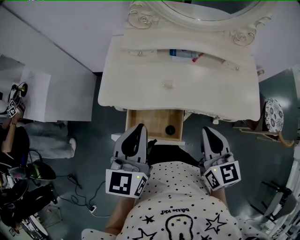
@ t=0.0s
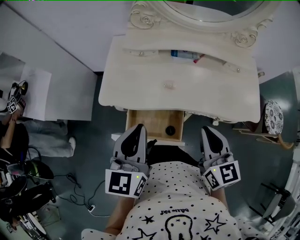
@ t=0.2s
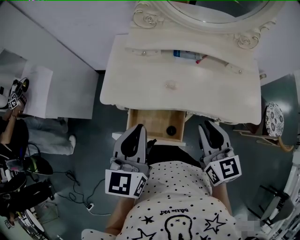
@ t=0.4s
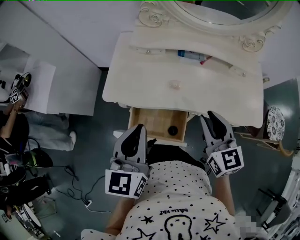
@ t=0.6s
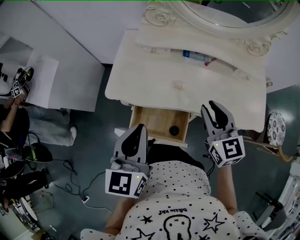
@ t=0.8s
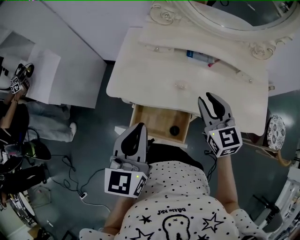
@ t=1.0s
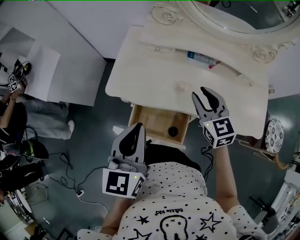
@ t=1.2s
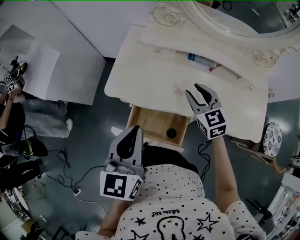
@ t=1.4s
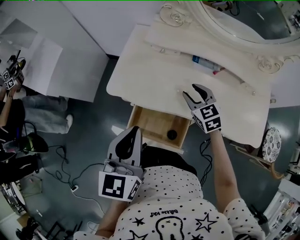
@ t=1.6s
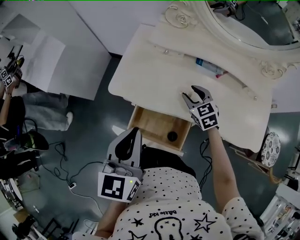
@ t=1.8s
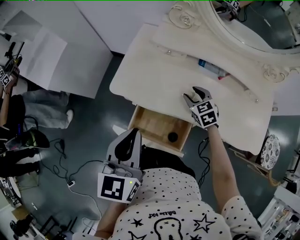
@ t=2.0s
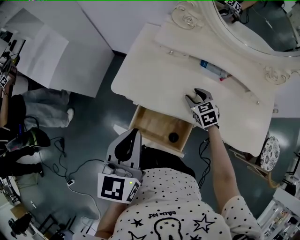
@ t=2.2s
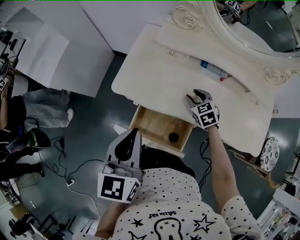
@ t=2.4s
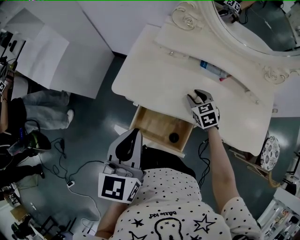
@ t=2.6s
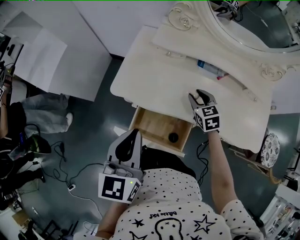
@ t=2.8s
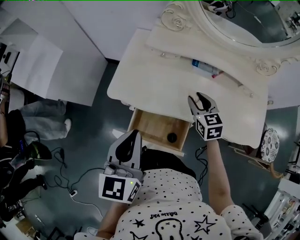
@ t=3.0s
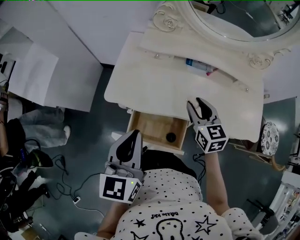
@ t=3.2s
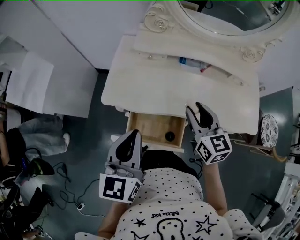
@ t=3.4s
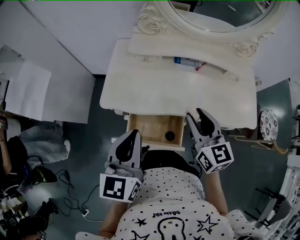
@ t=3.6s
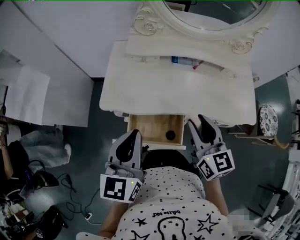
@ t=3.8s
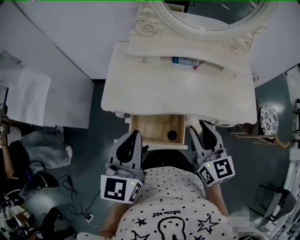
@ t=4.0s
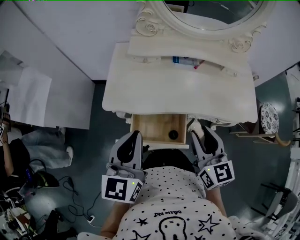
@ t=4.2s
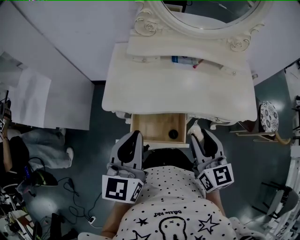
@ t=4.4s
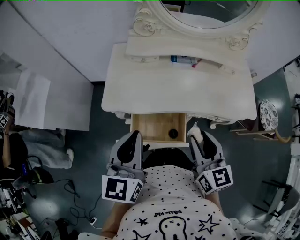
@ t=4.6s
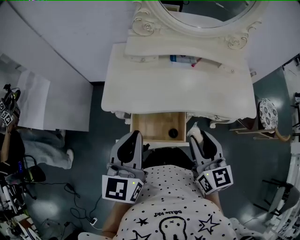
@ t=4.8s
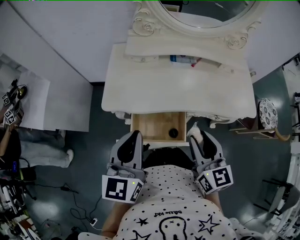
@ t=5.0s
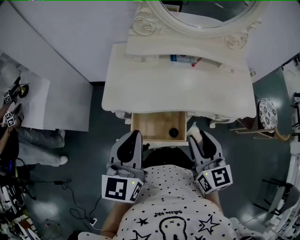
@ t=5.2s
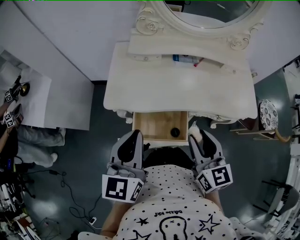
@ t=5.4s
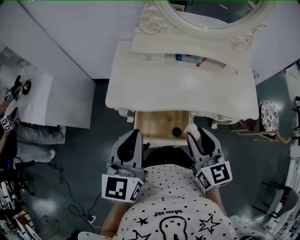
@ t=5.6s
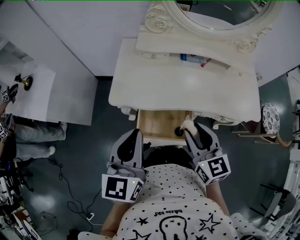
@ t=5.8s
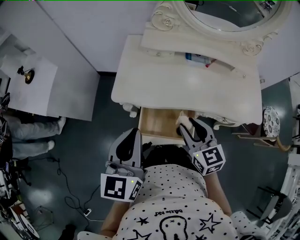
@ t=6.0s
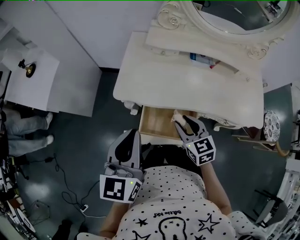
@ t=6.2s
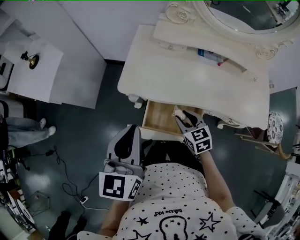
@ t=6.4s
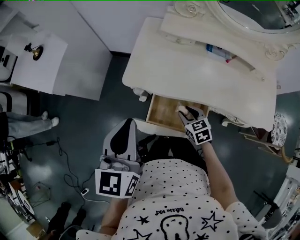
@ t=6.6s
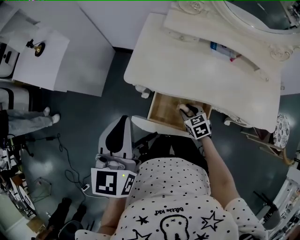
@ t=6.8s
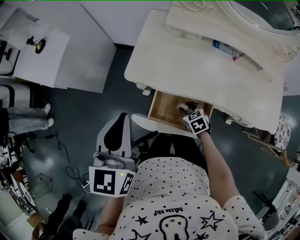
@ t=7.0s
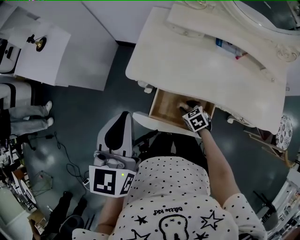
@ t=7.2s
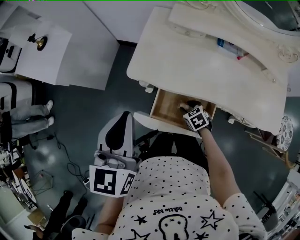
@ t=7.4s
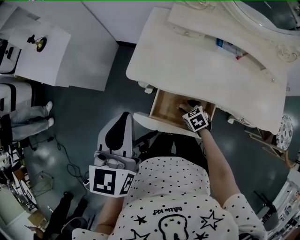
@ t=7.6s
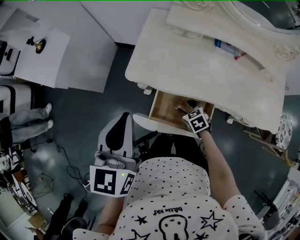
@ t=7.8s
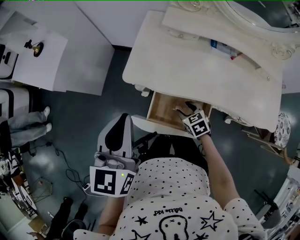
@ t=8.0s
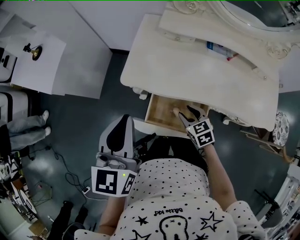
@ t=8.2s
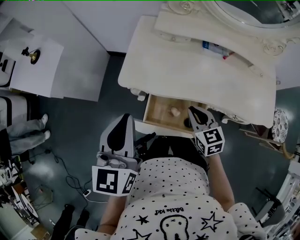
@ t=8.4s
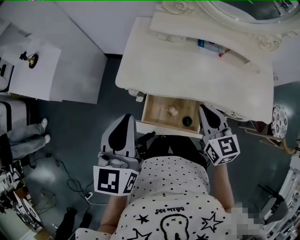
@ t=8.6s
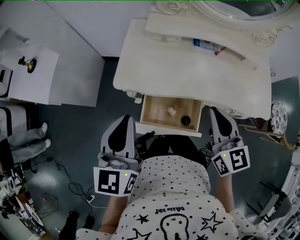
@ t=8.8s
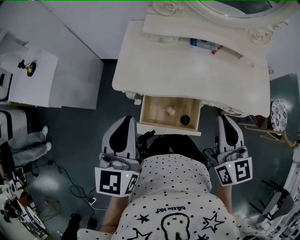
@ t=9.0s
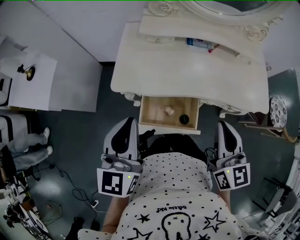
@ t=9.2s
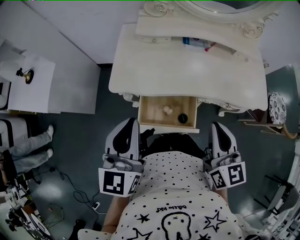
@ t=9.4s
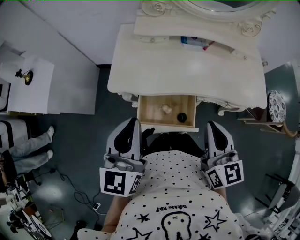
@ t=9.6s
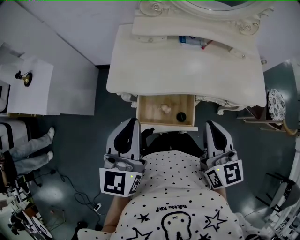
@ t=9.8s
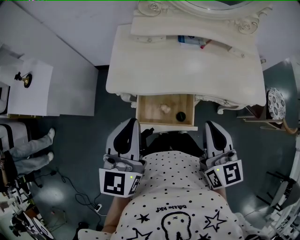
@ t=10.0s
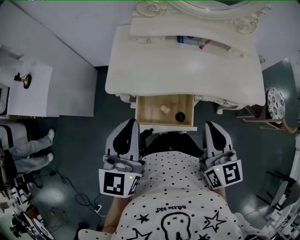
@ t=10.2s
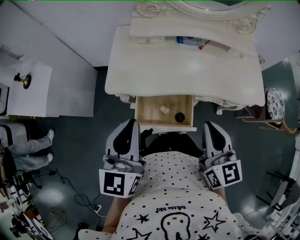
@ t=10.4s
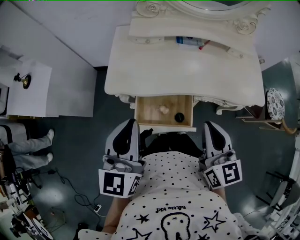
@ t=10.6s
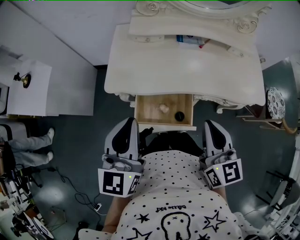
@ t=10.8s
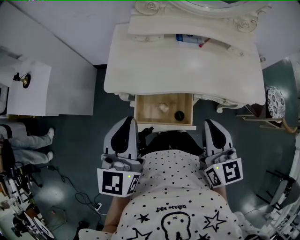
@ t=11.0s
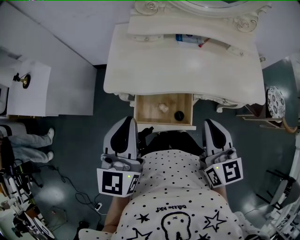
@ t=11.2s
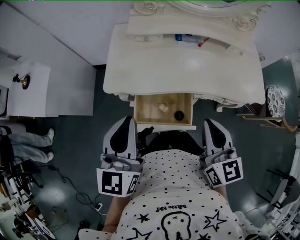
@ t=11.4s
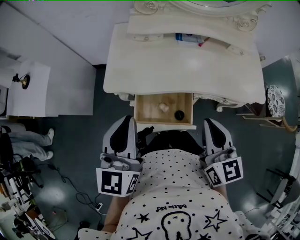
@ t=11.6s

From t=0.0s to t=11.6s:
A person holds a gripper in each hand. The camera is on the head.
From t=0.0s to t=1.4s: The right gripper is displaced forward and downward by some 20 cm, changes its angle by some 30 degrees, and opens.
From t=1.4s to t=2.8s: The right gripper shifts about 10 cm downward.
From t=2.8s to t=4.4s: The right gripper goes approximately 30 cm backward and upward, and swivels about 40 degrees.
From t=4.4s to t=5.8s: The right gripper is displaced to the left by about 5 cm.
From t=5.8s to t=7.2s: The left gripper heads to the left, covering some 5 cm, while the right gripper moves downward, some 30 cm, and tips its fingers downward by approximately 40 degrees.
From t=7.2s to t=8.8s: The right gripper moves upward, roughly 35 cm, angles its fingers upward, by approximately 50 degrees, and closes up.
From t=8.8s to t=10.2s: The left gripper ends up about 5 cm from where it was, while the right gripper is displaced backward by some 10 cm.
From t=10.2s to t=11.6s: Both grippers stay put.

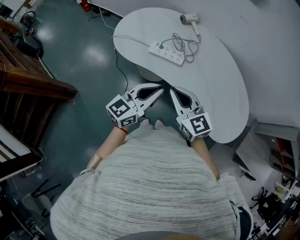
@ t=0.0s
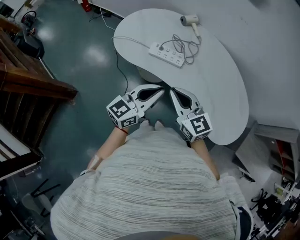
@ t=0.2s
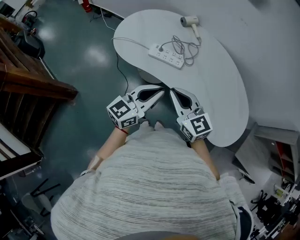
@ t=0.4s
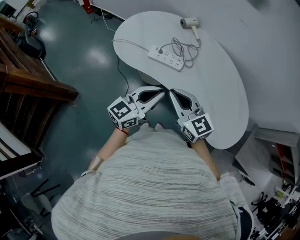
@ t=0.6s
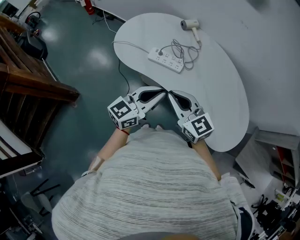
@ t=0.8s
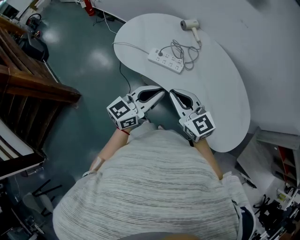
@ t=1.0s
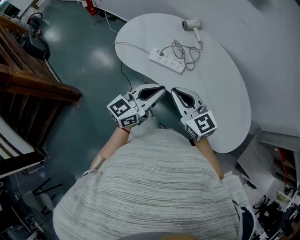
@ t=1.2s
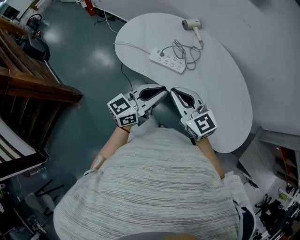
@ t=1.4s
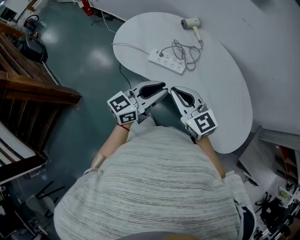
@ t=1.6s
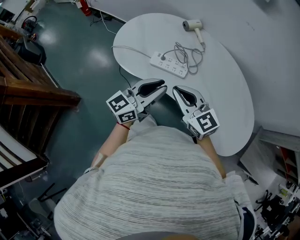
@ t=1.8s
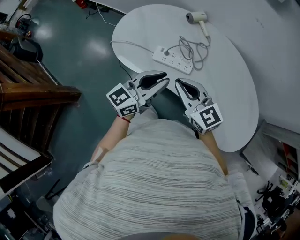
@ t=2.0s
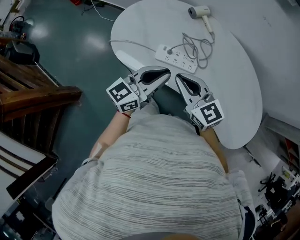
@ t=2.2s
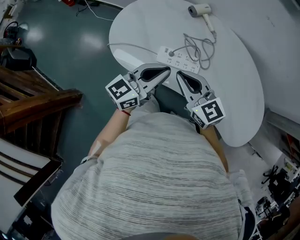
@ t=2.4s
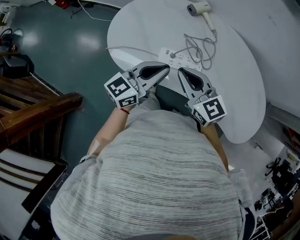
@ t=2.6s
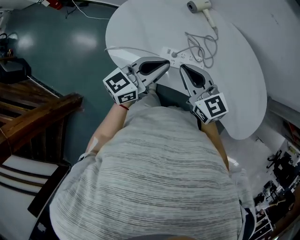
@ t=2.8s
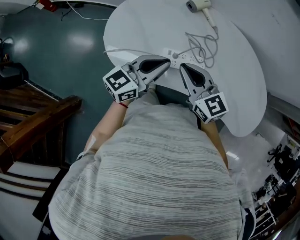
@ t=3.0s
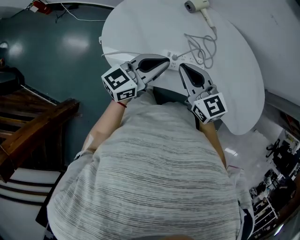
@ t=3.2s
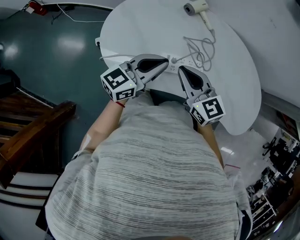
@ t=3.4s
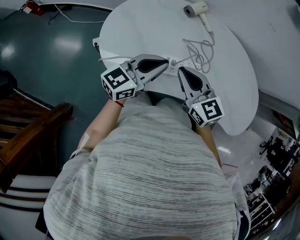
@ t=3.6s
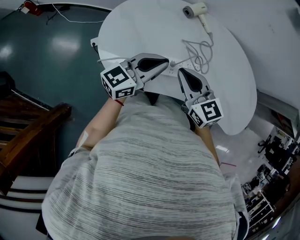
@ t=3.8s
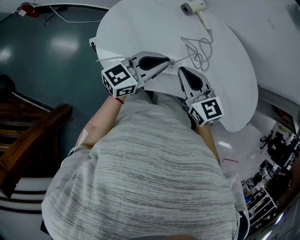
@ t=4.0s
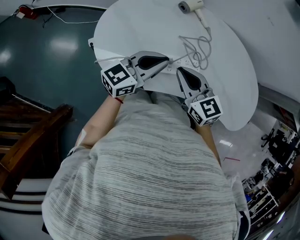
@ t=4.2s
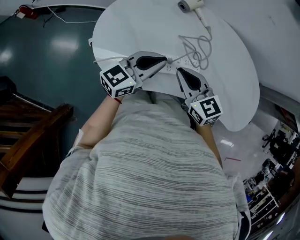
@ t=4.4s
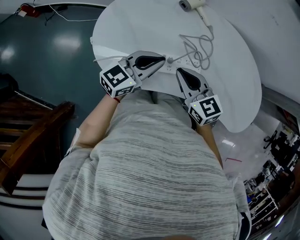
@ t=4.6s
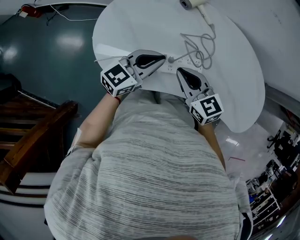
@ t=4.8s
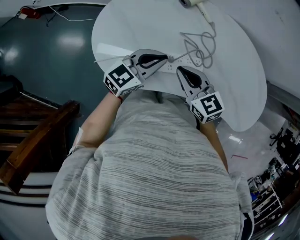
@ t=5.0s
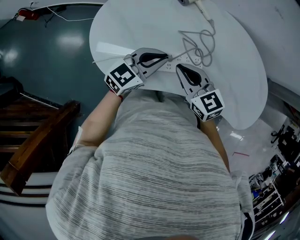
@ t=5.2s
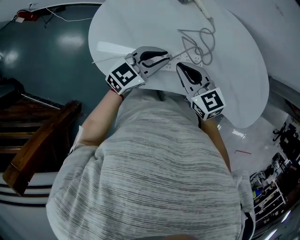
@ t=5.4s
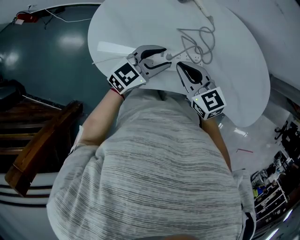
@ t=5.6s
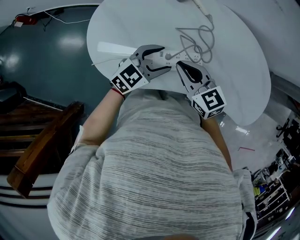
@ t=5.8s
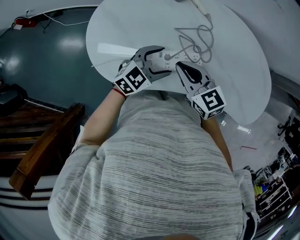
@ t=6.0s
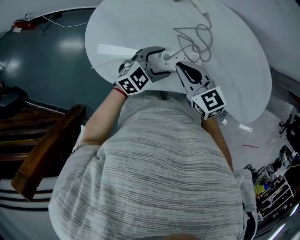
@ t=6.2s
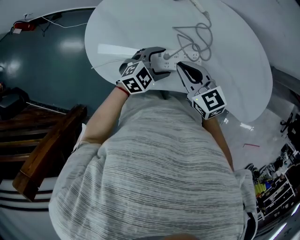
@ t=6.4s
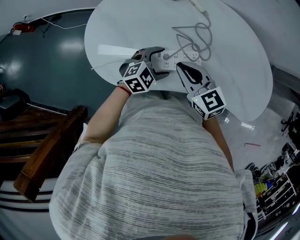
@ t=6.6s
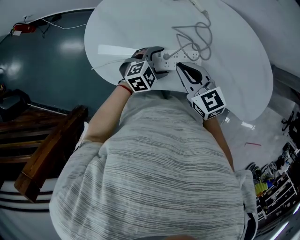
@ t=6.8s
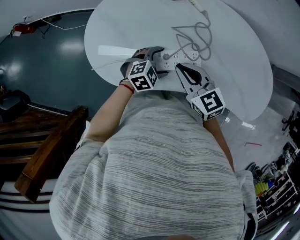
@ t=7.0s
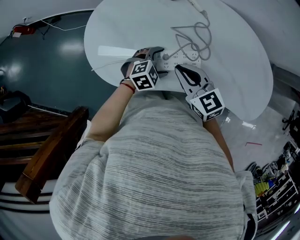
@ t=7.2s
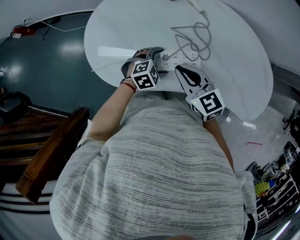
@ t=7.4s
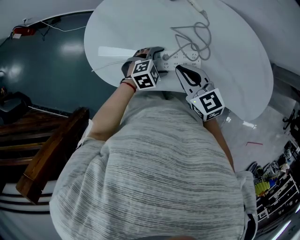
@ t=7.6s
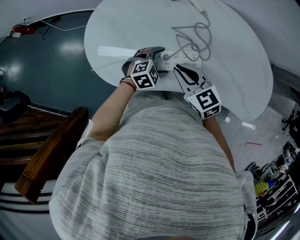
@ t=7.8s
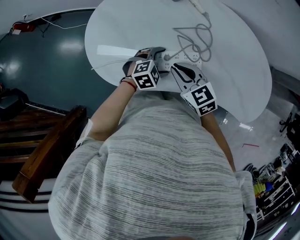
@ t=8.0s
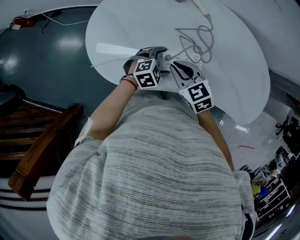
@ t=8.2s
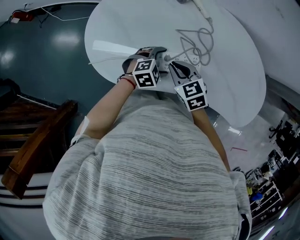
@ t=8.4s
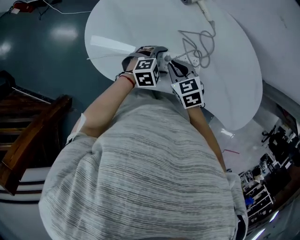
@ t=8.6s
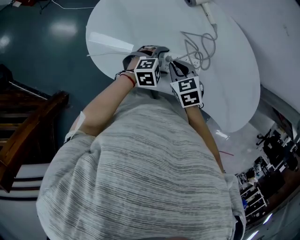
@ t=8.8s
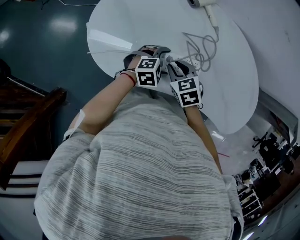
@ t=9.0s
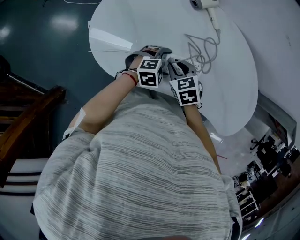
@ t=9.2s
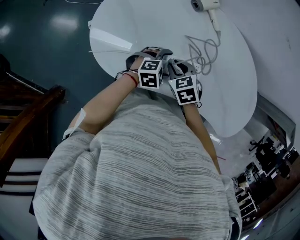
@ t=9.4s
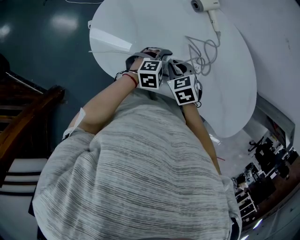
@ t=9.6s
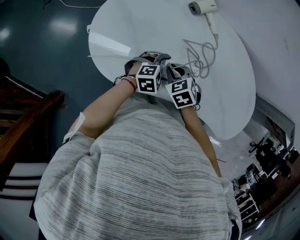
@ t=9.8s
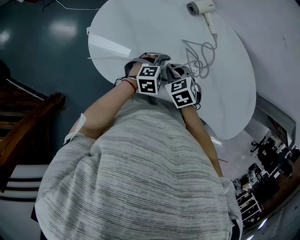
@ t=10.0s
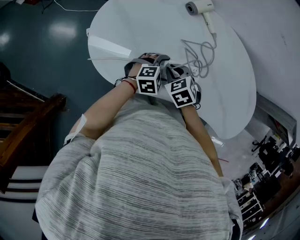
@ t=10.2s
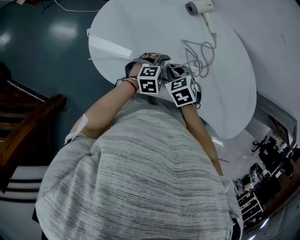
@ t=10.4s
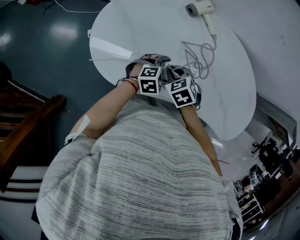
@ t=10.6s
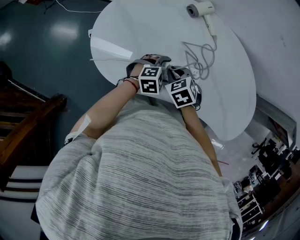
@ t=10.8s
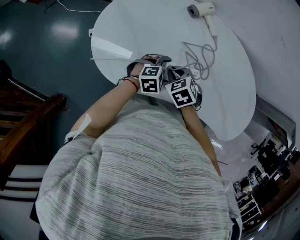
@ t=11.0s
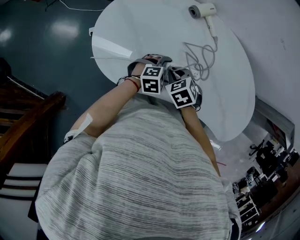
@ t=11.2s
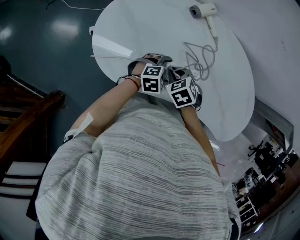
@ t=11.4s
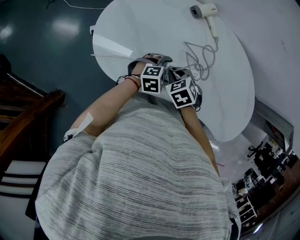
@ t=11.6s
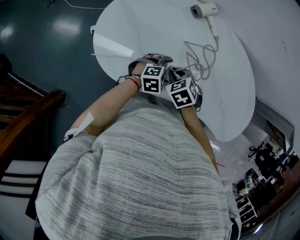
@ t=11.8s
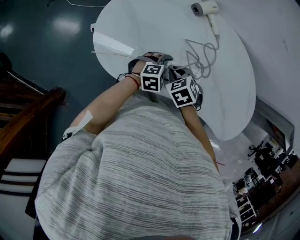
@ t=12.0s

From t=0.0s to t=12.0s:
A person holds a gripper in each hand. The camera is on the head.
From t=0.0s to t=1.6s: Both grippers move forward, about 5 cm.
From t=1.6s to t=3.0s: Both grippers travel together forward and to the left, about 25 cm. The right gripper swivels roughly 20 degrees.
From t=3.0s to t=4.4s: The left gripper moves approximately 5 cm.
From t=4.4s to t=6.0s: The left gripper goes roughly 10 cm downward, rotates approximately 30 degrees, and opens.
From t=6.0s to t=7.6s: The left gripper shifts approximately 10 cm downward, and changes its angle by roughly 30 degrees.
From t=7.6s to t=9.0s: The right gripper is displaced downward by about 10 cm, and turns by approximately 30 degrees.
From t=9.0s to t=12.0s: The grippers make only small movements.
